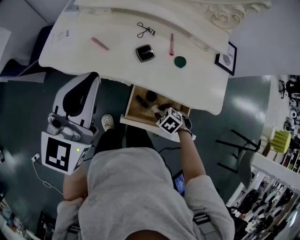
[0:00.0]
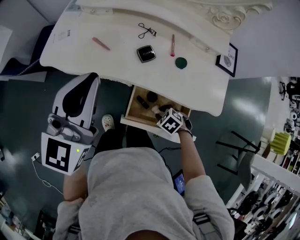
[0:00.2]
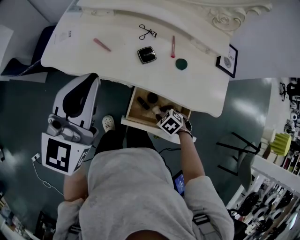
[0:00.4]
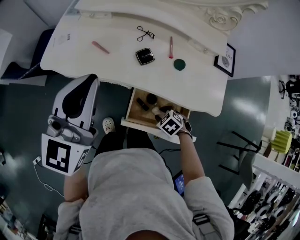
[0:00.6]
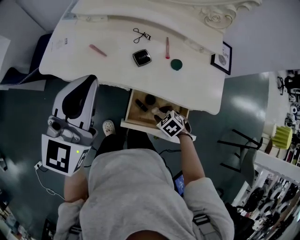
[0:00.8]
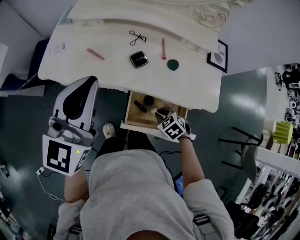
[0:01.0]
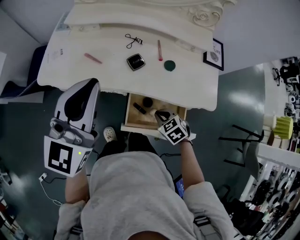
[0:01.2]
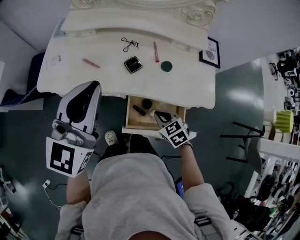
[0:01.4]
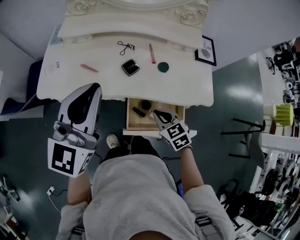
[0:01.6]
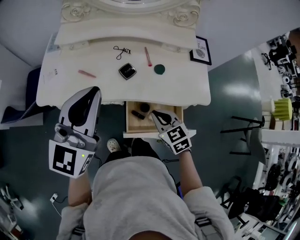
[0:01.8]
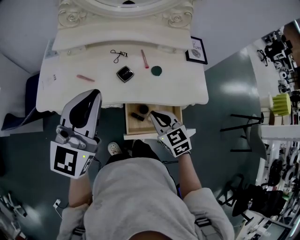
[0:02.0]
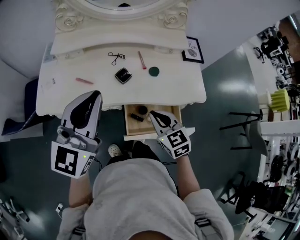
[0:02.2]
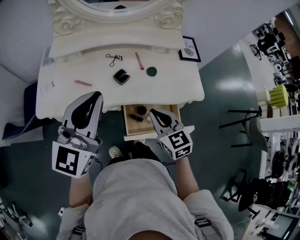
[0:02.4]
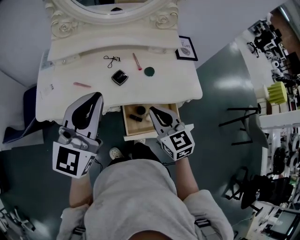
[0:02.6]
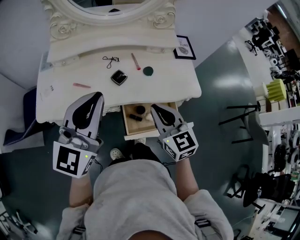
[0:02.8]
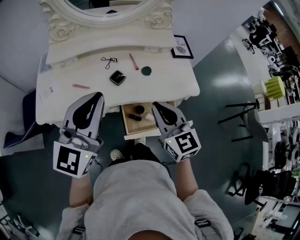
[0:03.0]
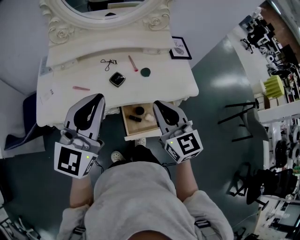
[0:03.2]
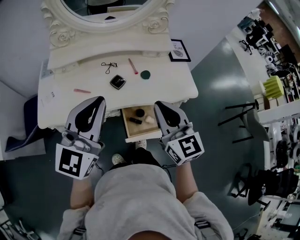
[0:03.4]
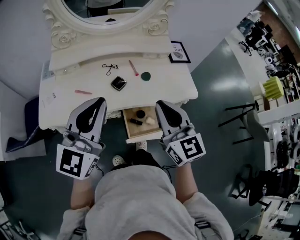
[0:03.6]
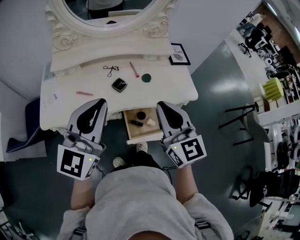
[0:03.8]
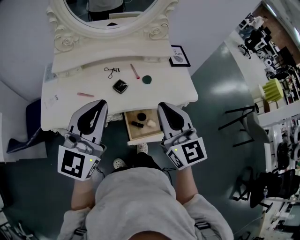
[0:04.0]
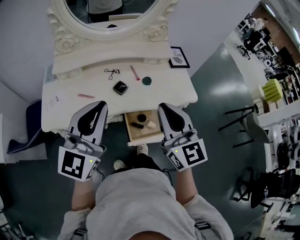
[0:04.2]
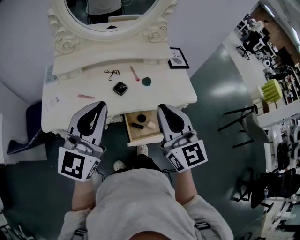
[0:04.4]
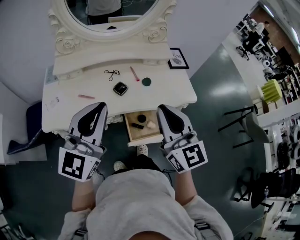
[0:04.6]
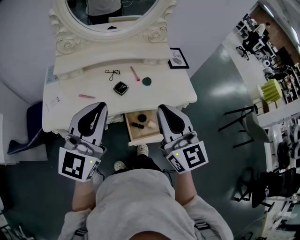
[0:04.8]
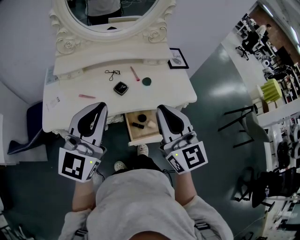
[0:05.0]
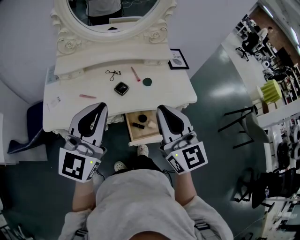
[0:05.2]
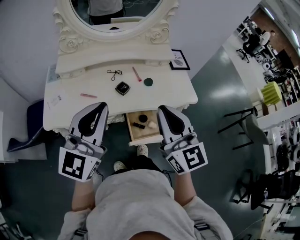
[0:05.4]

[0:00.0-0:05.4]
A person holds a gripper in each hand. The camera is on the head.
0:00.0 to 0:01.4: The right gripper is displaced upward by approximately 10 cm, swivels some 30 degrees, and closes.
0:01.4 to 0:02.8: The right gripper goes about 20 cm upward, and tilts its fingers some 40 degrees upward.
0:02.8 to 0:04.0: The right gripper travels upward by roughly 10 cm.
0:04.0 to 0:05.4: The grippers make only small movements.

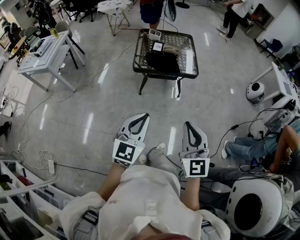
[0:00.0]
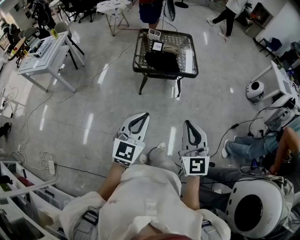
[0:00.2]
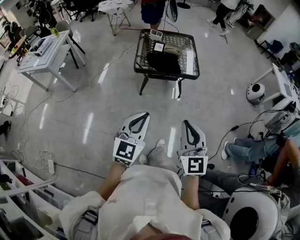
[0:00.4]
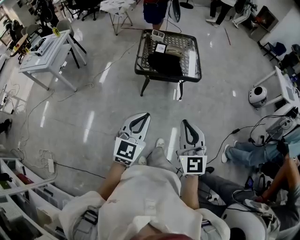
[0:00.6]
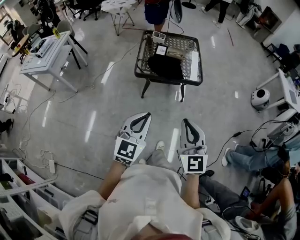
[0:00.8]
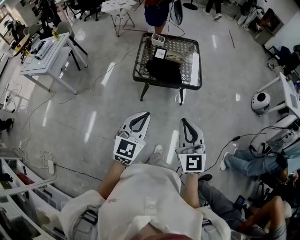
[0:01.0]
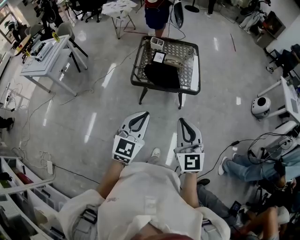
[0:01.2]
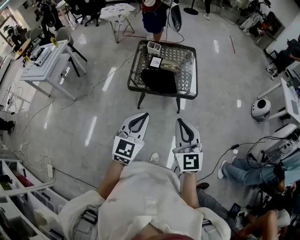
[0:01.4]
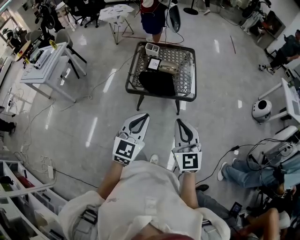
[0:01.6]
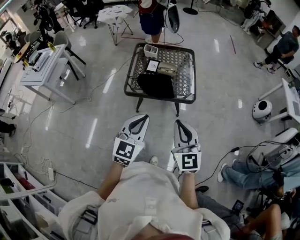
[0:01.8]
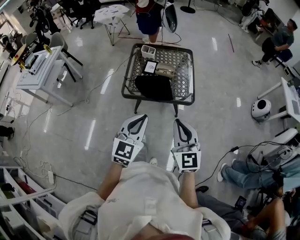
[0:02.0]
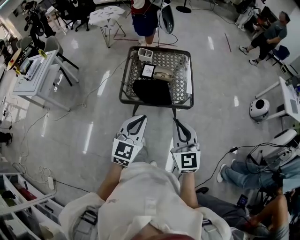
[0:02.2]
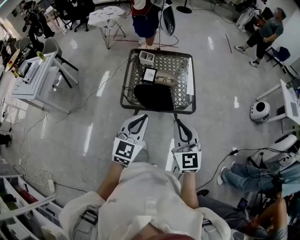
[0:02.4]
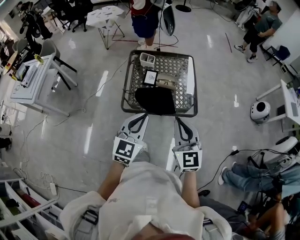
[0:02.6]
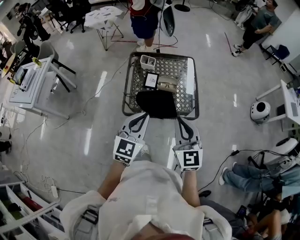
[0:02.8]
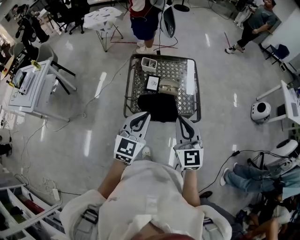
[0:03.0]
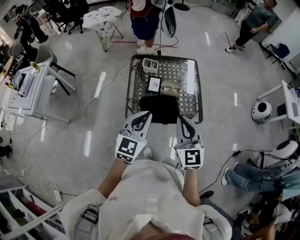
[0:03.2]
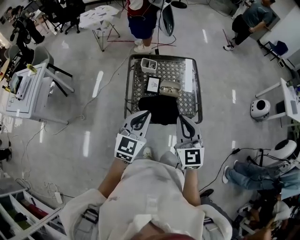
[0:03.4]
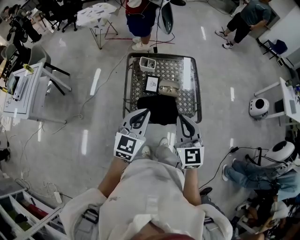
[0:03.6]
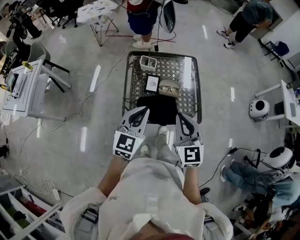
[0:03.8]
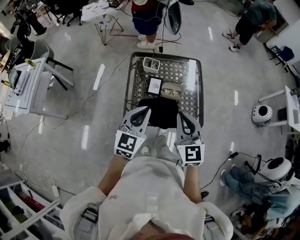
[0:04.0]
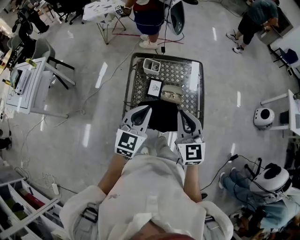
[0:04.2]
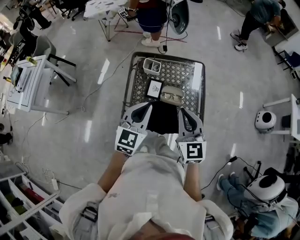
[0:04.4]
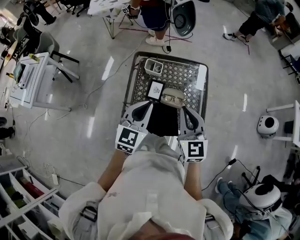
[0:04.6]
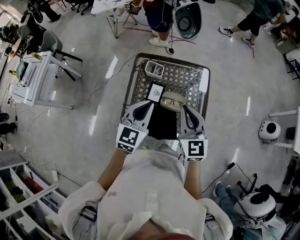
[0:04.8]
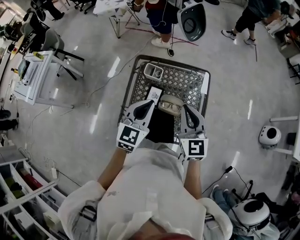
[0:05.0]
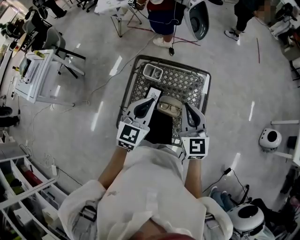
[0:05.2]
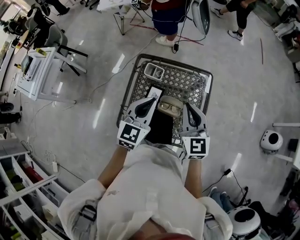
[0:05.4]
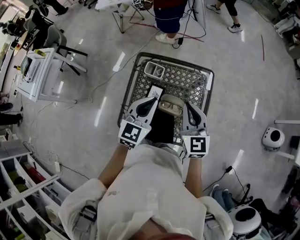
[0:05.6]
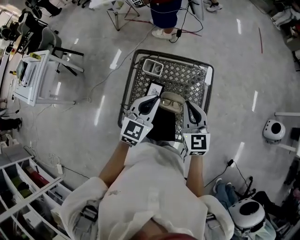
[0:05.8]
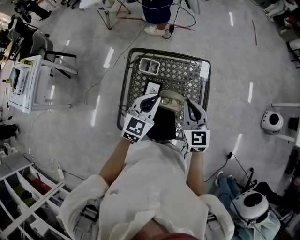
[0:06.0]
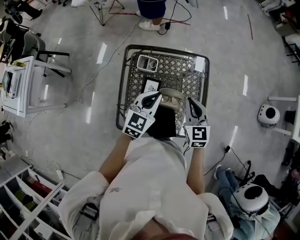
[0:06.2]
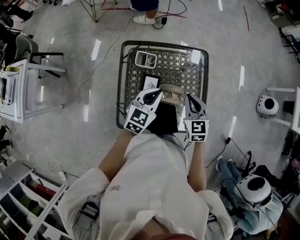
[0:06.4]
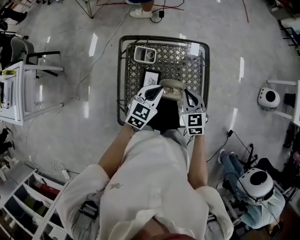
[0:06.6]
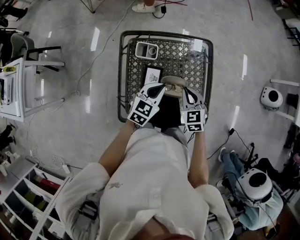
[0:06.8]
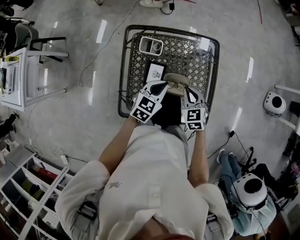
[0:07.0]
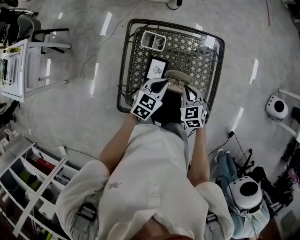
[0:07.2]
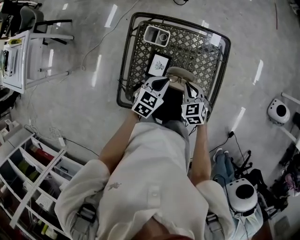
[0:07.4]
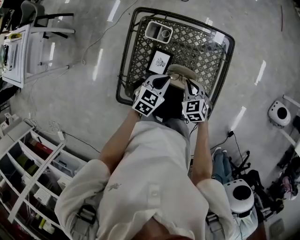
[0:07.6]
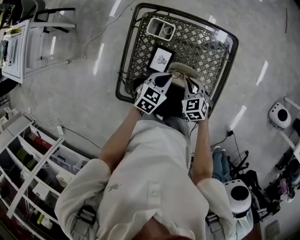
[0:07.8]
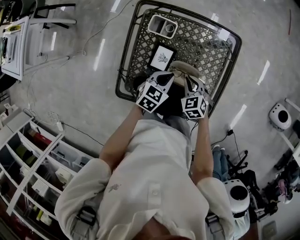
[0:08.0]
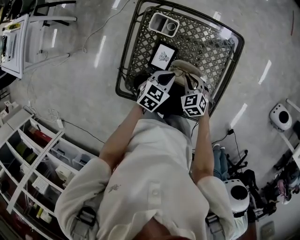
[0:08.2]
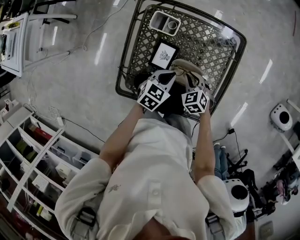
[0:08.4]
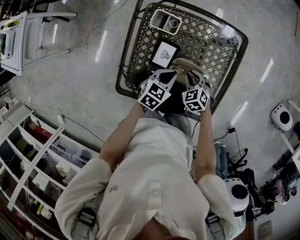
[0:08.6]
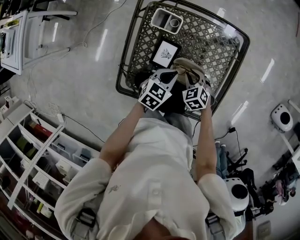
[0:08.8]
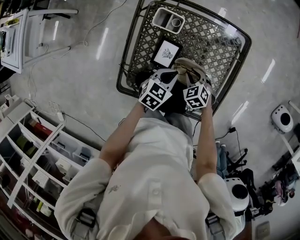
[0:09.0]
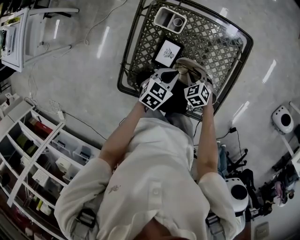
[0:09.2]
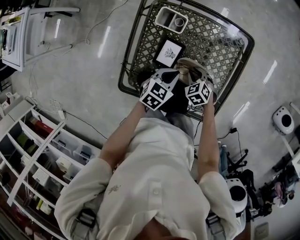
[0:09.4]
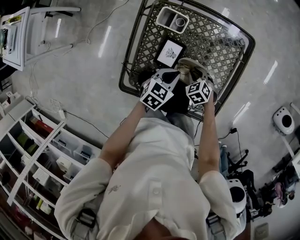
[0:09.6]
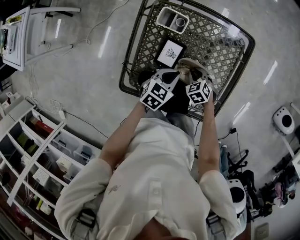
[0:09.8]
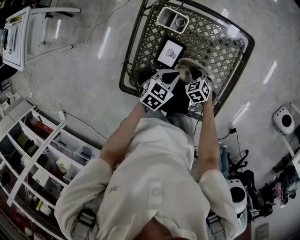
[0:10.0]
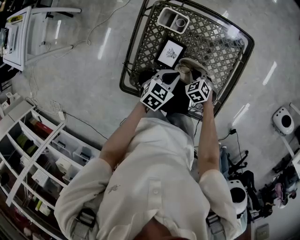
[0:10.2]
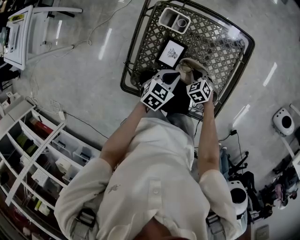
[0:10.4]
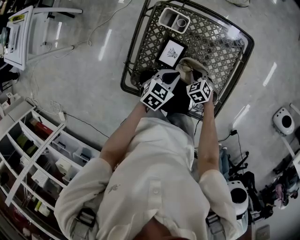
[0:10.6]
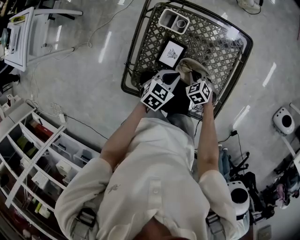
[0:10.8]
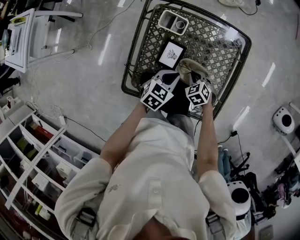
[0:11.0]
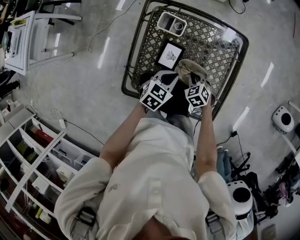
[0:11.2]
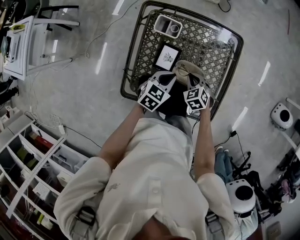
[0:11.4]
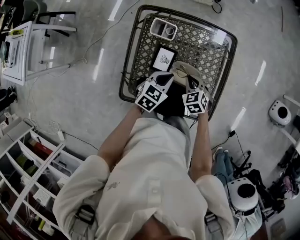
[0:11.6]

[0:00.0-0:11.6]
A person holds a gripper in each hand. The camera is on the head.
0:00.0 to 0:01.4: The two grippers go about 20 cm forward.
0:01.4 to 0:02.8: Both grippers travel together forward, approximately 25 cm.
0:02.8 to 0:04.4: Both grippers move forward, approximately 20 cm.
0:04.4 to 0:05.8: The left gripper moves forward and to the right, some 15 cm. The right gripper shifts some 15 cm forward.
0:05.8 to 0:07.2: Both grippers travel together downward, about 20 cm. The right gripper points its fingers approximately 30 degrees further downward. Meanwhile the left gripper changes its angle by some 20 degrees.
0:07.2 to 0:08.8: The left gripper heads downward, covering roughly 10 cm, while the right gripper is displaced downward by approximately 10 cm, and turns by about 20 degrees.
0:08.8 to 0:10.2: The grippers move only a little.
0:10.2 to 0:11.6: The left gripper heads upward, covering approximately 5 cm; the right gripper goes about 10 cm upward.

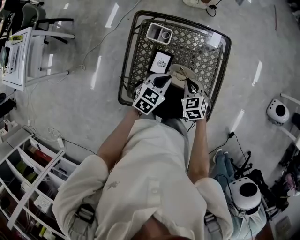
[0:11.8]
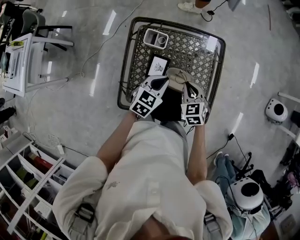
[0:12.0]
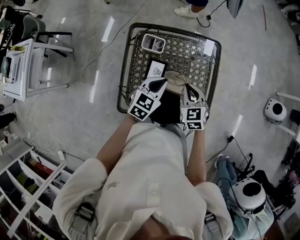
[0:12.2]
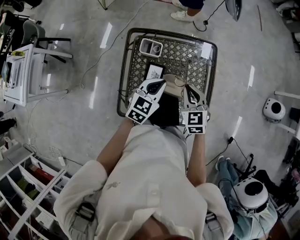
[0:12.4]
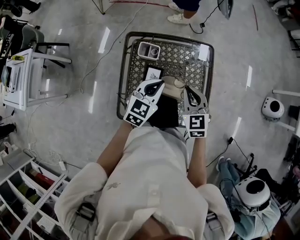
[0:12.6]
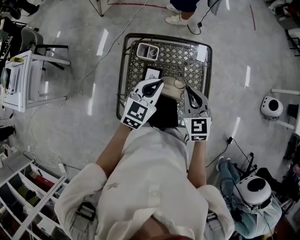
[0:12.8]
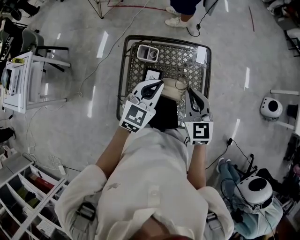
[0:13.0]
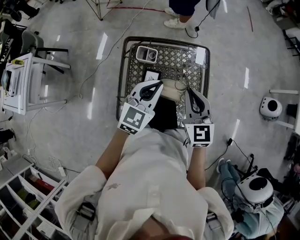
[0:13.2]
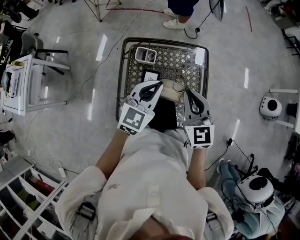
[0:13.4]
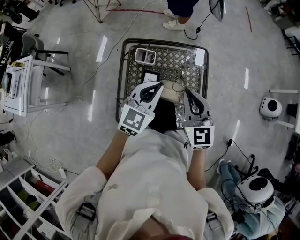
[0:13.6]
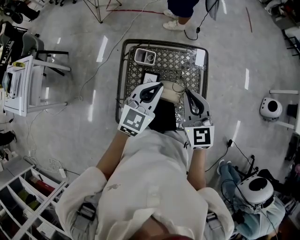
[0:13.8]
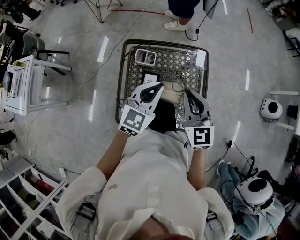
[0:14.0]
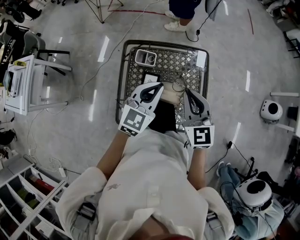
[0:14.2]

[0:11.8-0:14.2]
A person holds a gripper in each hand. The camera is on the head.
0:11.8 to 0:13.0: Both grippers travel together upward, some 20 cm. The right gripper changes its angle by some 30 degrees. The left gripper swivels about 20 degrees.
0:13.0 to 0:14.2: There are only small adjustments of the grippers.

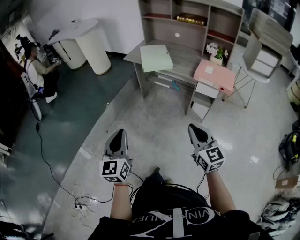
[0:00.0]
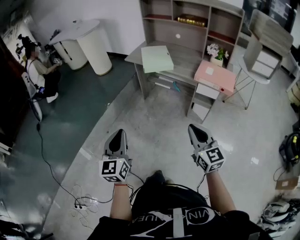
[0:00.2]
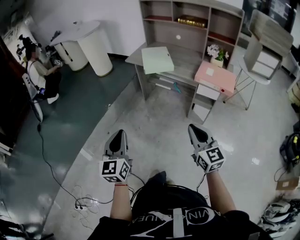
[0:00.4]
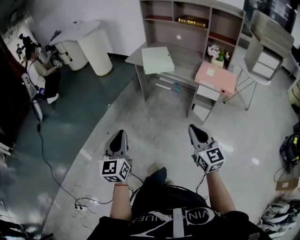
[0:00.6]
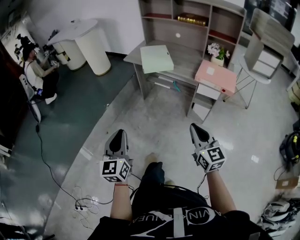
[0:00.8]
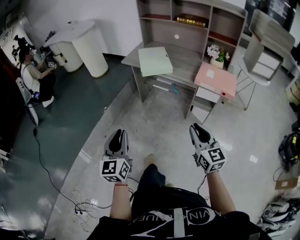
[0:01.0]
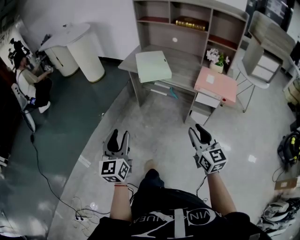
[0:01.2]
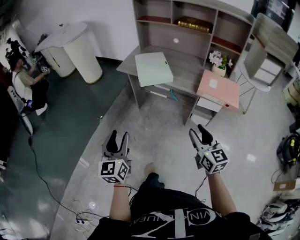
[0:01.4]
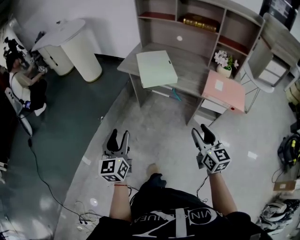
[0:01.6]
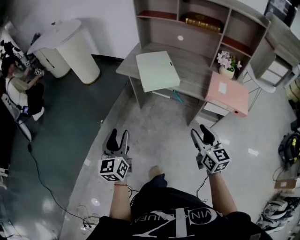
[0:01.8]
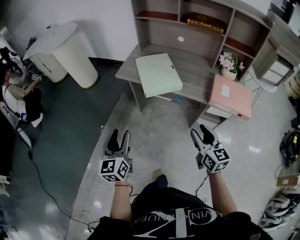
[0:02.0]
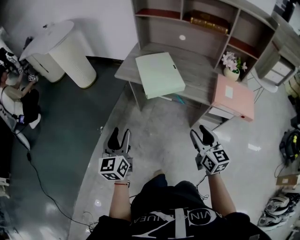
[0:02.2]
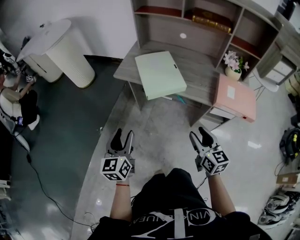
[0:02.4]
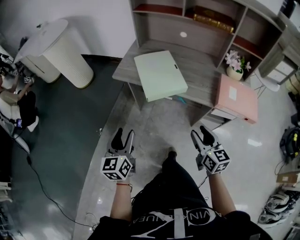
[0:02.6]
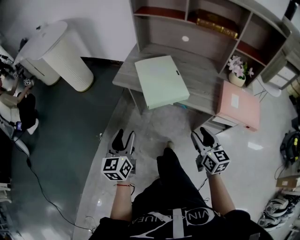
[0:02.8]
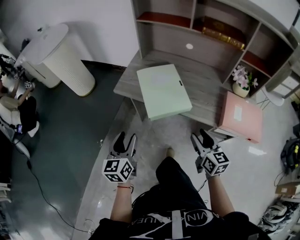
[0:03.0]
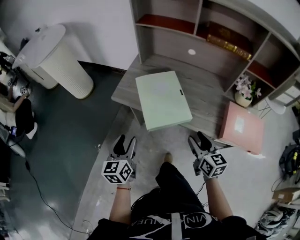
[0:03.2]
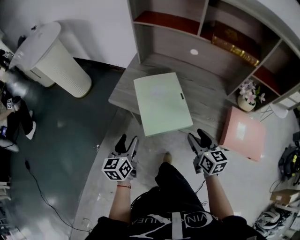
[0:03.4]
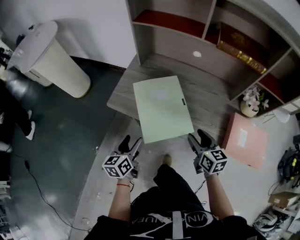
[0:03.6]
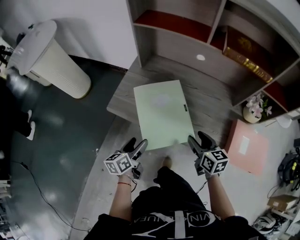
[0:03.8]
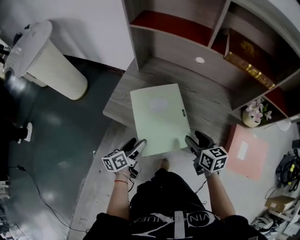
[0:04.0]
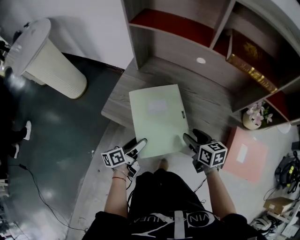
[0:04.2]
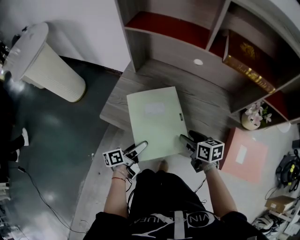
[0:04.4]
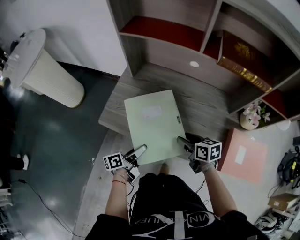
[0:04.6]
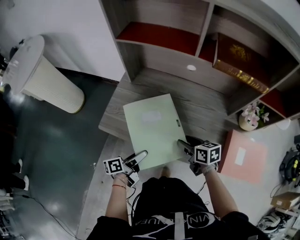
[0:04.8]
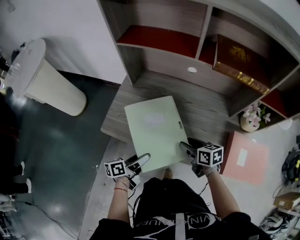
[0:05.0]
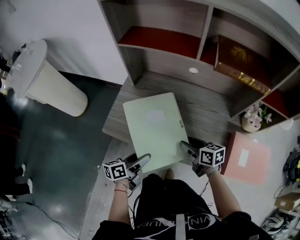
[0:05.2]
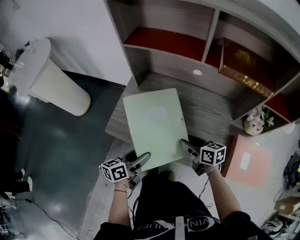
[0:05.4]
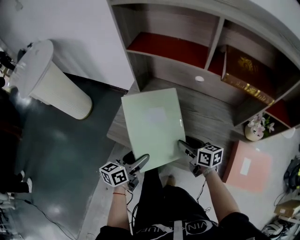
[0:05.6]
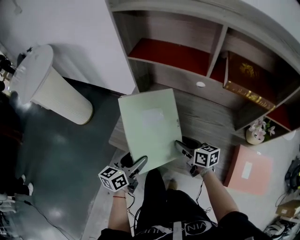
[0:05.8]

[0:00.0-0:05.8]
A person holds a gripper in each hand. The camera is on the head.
0:00.0 to 0:01.4: Both grippers travel together forward, some 15 cm. The right gripper opens up, while the left gripper opens up.
0:01.4 to 0:02.8: The two grippers go some 25 cm forward.
0:02.8 to 0:04.4: The left gripper travels forward and downward by roughly 30 cm, rolls counterclockwise, seen from behind, by about 50 degrees, and opens up; the right gripper travels forward by about 30 cm, and swivels approximately 30 degrees.
0:04.4 to 0:05.8: The left gripper travels upward and forward by some 15 cm, and changes its angle by some 40 degrees. The right gripper shifts some 10 cm forward and to the left.
